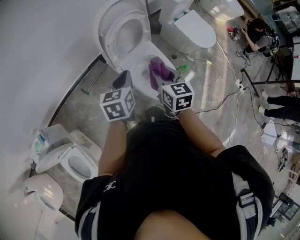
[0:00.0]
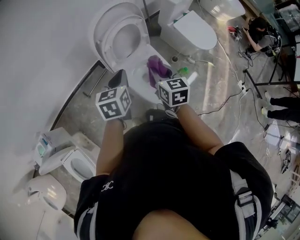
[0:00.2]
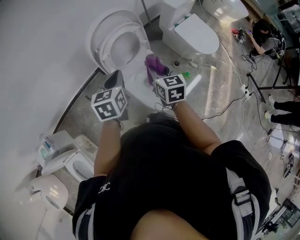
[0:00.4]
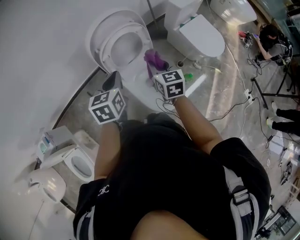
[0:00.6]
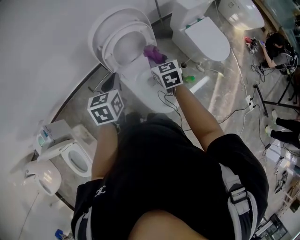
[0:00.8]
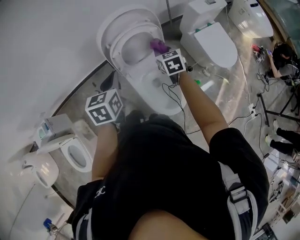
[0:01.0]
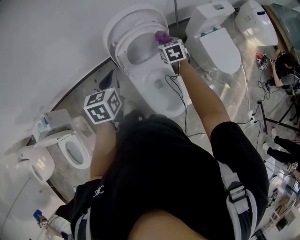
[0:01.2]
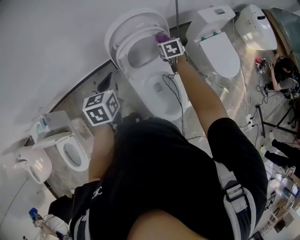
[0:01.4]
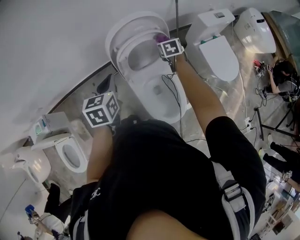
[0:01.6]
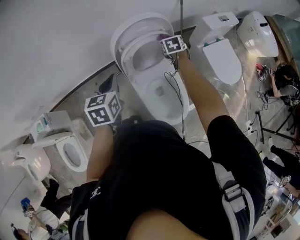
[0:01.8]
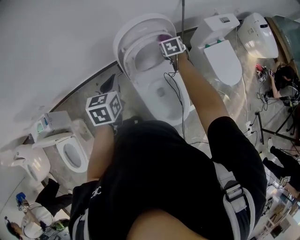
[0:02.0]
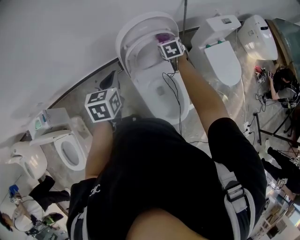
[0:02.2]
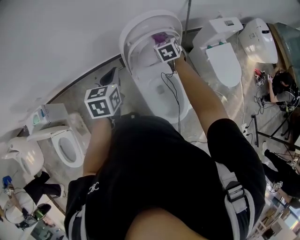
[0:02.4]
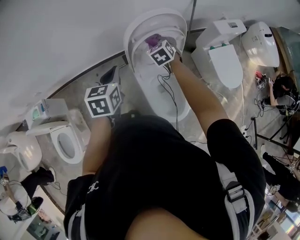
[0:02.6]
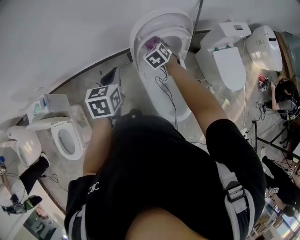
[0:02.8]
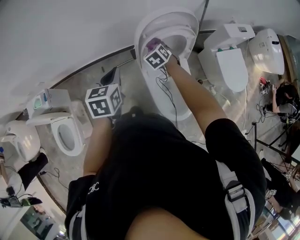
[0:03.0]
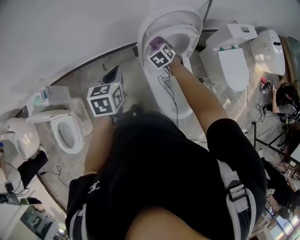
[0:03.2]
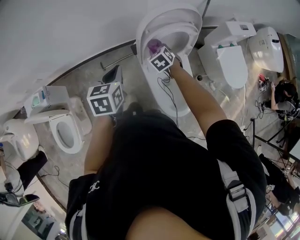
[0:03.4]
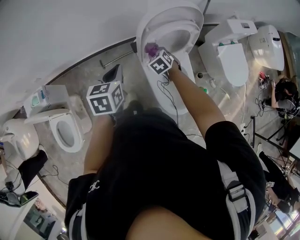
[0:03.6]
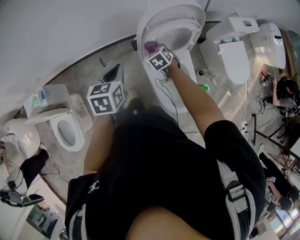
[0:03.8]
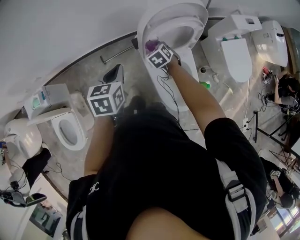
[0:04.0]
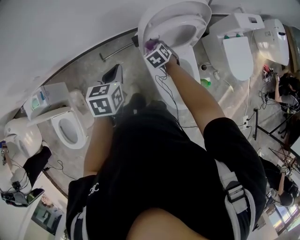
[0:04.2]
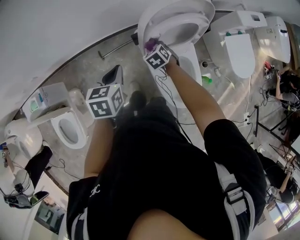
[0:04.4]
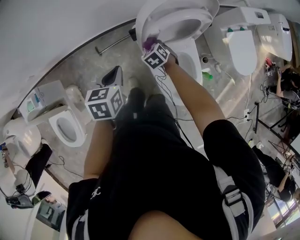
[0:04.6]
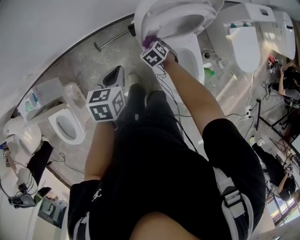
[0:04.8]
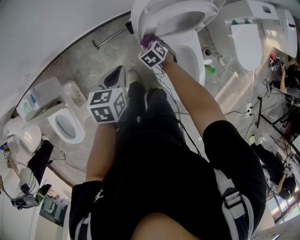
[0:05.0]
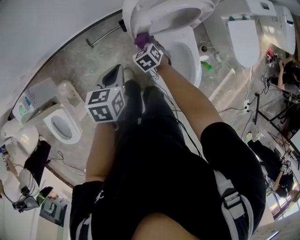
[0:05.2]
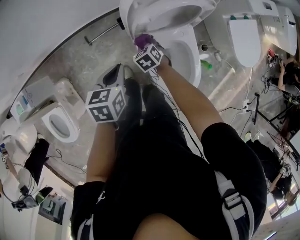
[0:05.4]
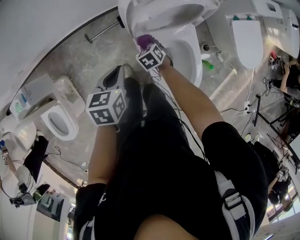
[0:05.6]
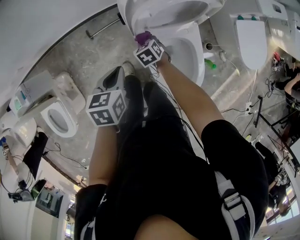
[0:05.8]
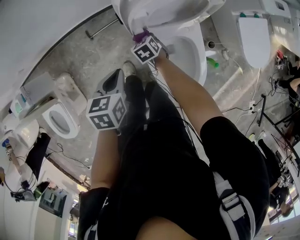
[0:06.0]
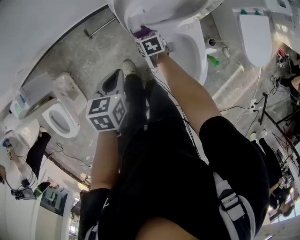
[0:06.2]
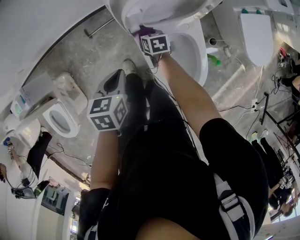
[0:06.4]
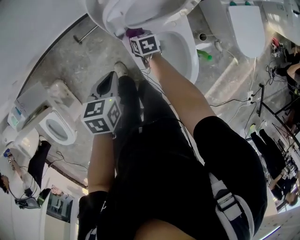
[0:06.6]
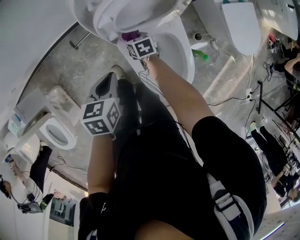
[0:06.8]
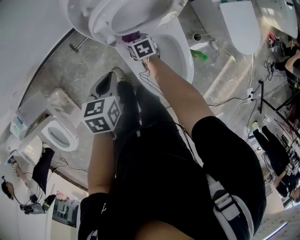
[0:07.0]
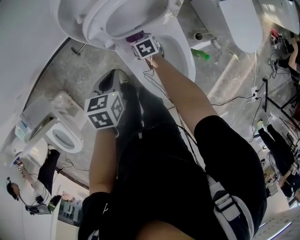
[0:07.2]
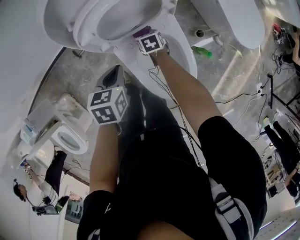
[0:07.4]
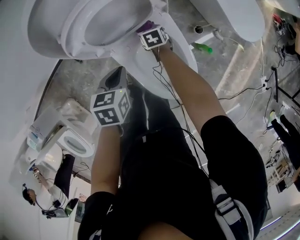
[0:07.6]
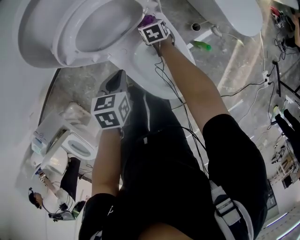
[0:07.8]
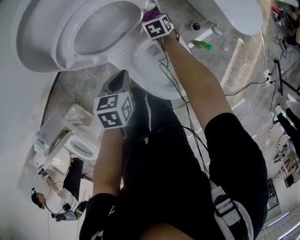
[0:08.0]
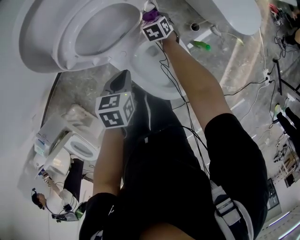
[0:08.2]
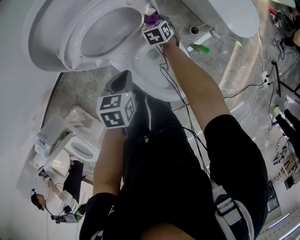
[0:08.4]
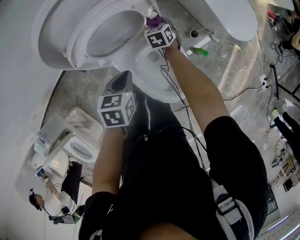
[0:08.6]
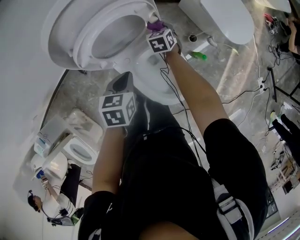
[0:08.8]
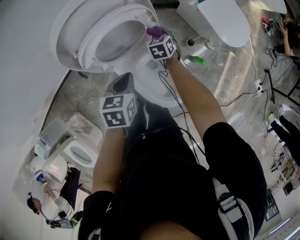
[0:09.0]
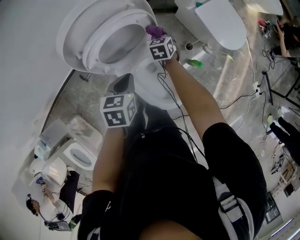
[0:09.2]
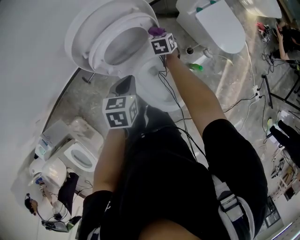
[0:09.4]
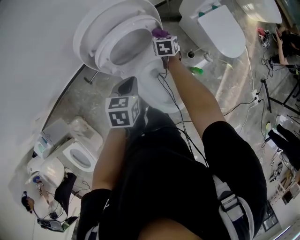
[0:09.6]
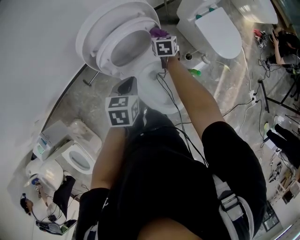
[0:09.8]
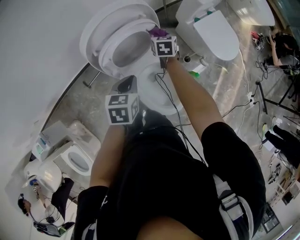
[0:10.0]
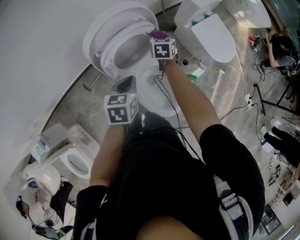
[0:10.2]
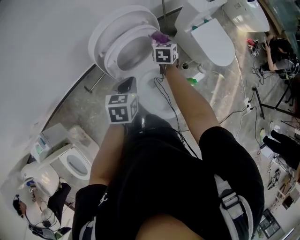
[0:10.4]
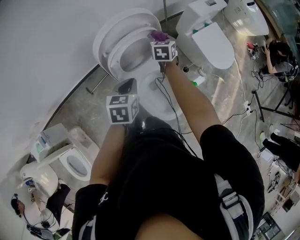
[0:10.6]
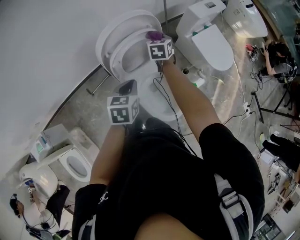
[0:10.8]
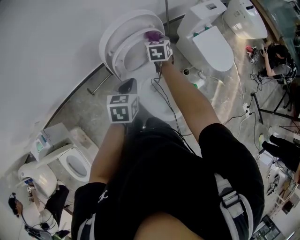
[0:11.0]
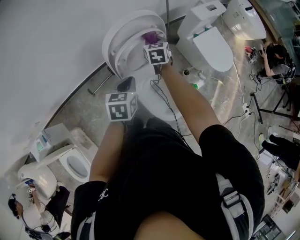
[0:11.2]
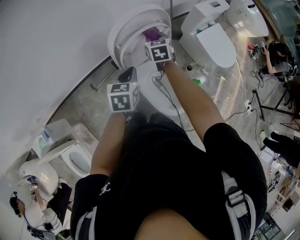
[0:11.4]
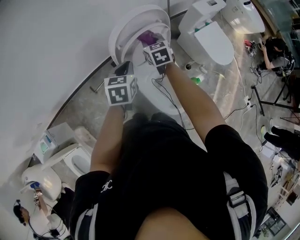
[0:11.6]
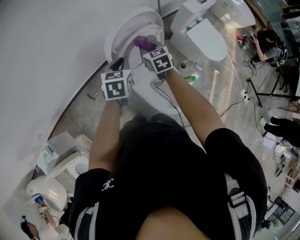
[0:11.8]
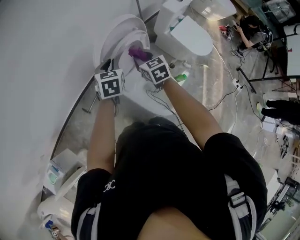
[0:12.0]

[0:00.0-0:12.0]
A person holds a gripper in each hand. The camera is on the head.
0:00.0 to 0:01.6: The right gripper moves forward, roughly 35 cm, and swivels some 30 degrees. Meanwhile the left gripper is displaced forward by about 10 cm.
0:01.6 to 0:03.0: The left gripper heads to the left, covering some 10 cm. Meanwhile the right gripper shifts some 25 cm to the left, and swivels approximately 30 degrees.
0:03.0 to 0:04.4: The right gripper goes about 10 cm downward, while the left gripper travels downward by about 10 cm.
0:04.4 to 0:06.0: The right gripper travels downward by about 15 cm. The left gripper travels downward and to the right by approximately 15 cm.
0:06.0 to 0:07.6: The right gripper goes roughly 25 cm to the right, and changes its angle by about 30 degrees. Meanwhile the left gripper goes approximately 20 cm to the right and downward.
0:07.6 to 0:09.0: The left gripper shifts approximately 10 cm upward. The right gripper heads upward, to the right and forward, covering approximately 15 cm, and swivels approximately 20 degrees.
0:09.0 to 0:10.4: The left gripper goes some 10 cm upward; the right gripper heads upward, covering some 20 cm.
0:10.4 to 0:12.0: The left gripper is displaced to the left and forward by roughly 15 cm. Meanwhile the right gripper is displaced to the left, backward and upward by approximately 20 cm.

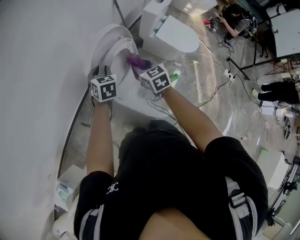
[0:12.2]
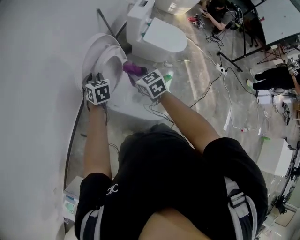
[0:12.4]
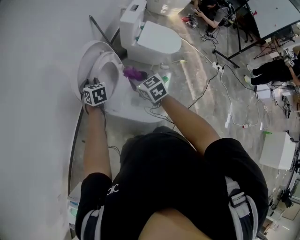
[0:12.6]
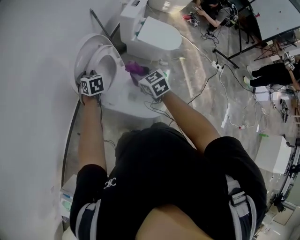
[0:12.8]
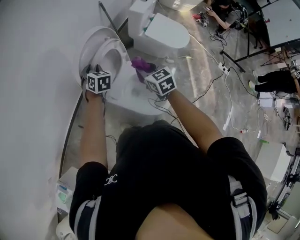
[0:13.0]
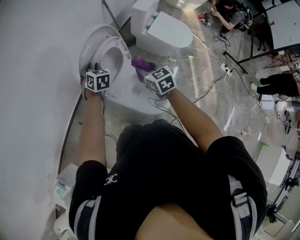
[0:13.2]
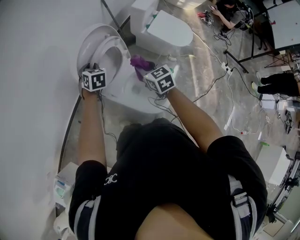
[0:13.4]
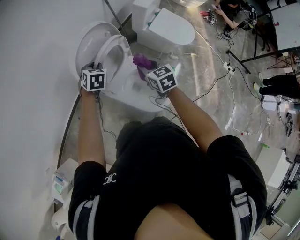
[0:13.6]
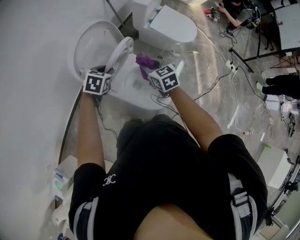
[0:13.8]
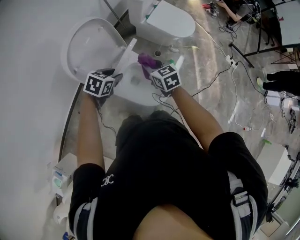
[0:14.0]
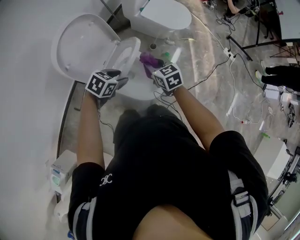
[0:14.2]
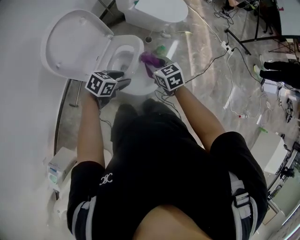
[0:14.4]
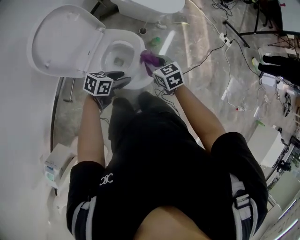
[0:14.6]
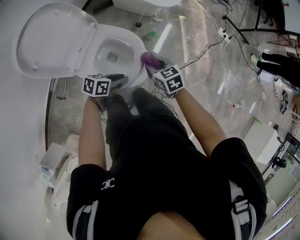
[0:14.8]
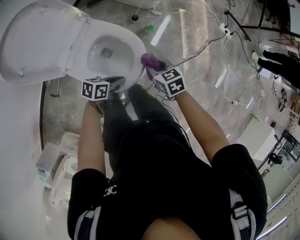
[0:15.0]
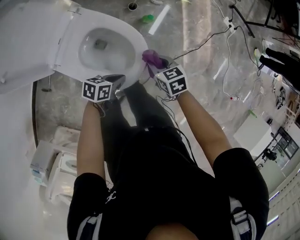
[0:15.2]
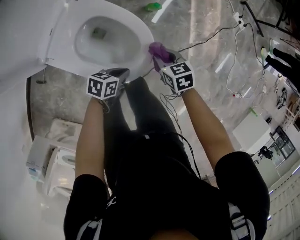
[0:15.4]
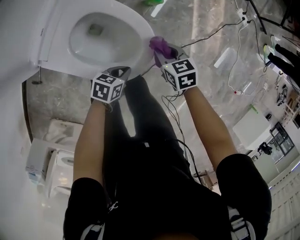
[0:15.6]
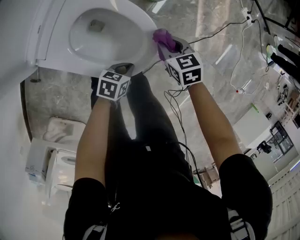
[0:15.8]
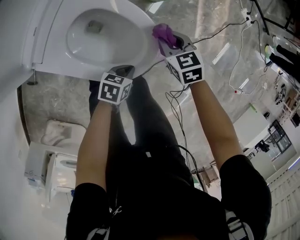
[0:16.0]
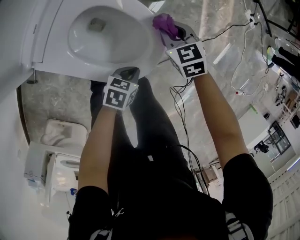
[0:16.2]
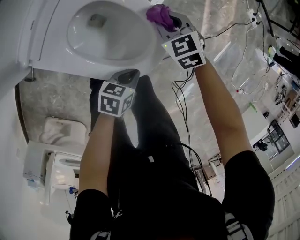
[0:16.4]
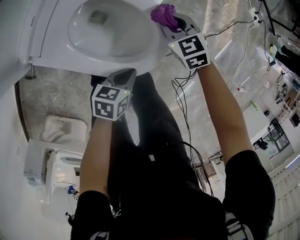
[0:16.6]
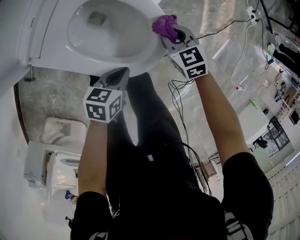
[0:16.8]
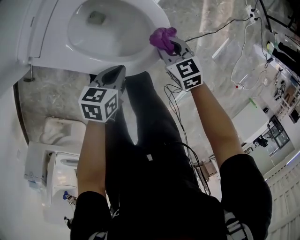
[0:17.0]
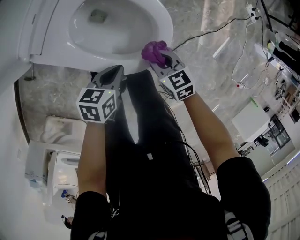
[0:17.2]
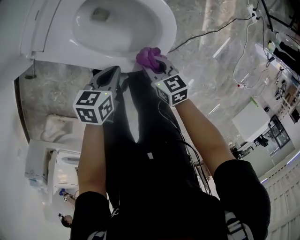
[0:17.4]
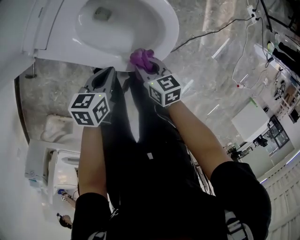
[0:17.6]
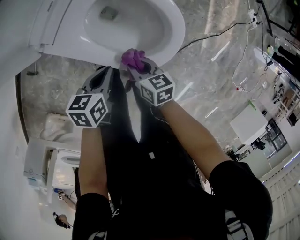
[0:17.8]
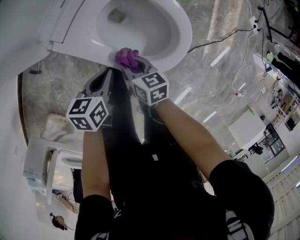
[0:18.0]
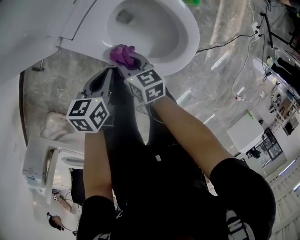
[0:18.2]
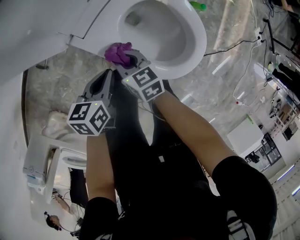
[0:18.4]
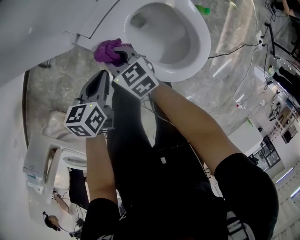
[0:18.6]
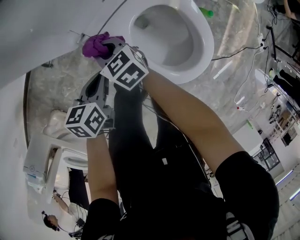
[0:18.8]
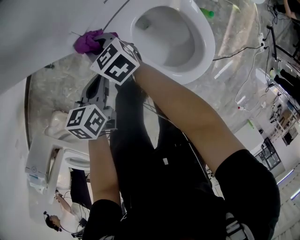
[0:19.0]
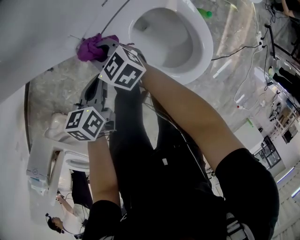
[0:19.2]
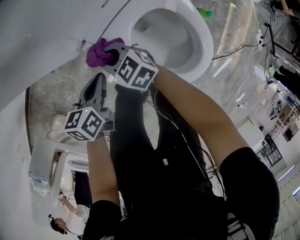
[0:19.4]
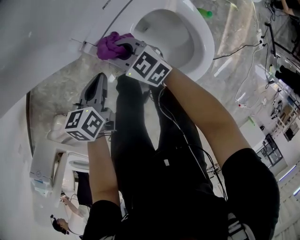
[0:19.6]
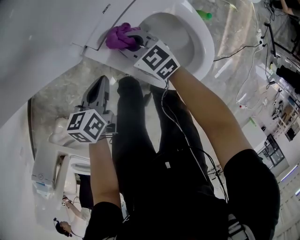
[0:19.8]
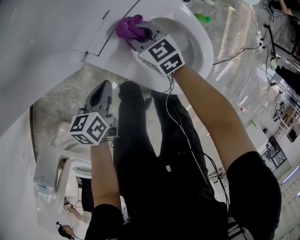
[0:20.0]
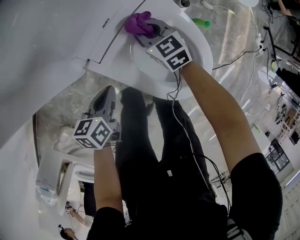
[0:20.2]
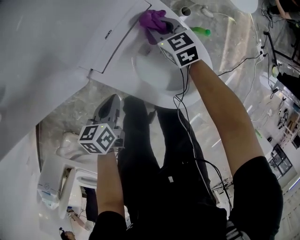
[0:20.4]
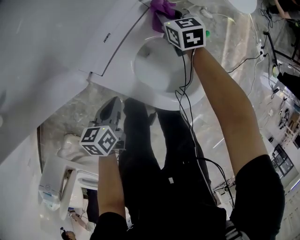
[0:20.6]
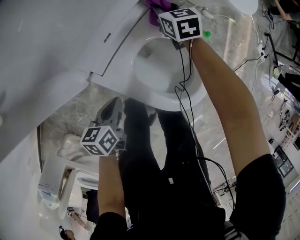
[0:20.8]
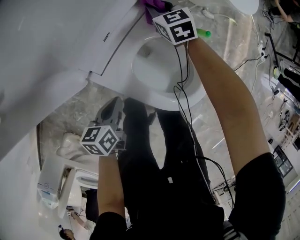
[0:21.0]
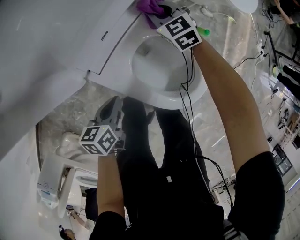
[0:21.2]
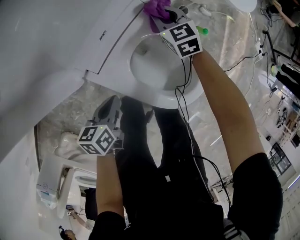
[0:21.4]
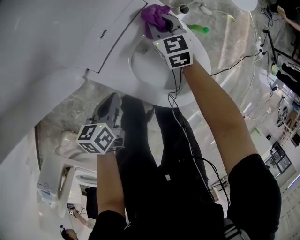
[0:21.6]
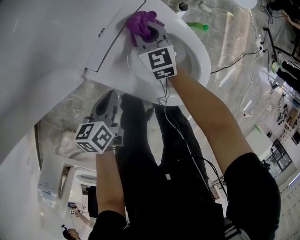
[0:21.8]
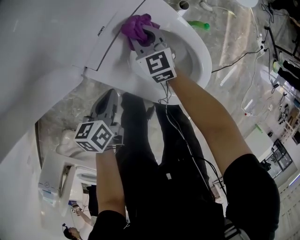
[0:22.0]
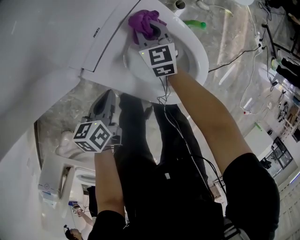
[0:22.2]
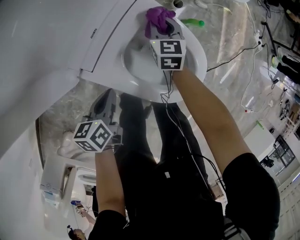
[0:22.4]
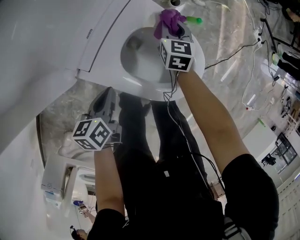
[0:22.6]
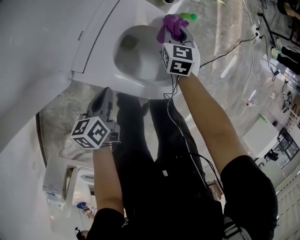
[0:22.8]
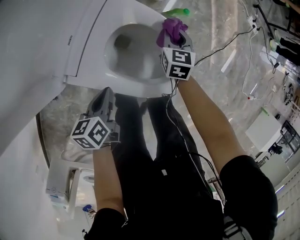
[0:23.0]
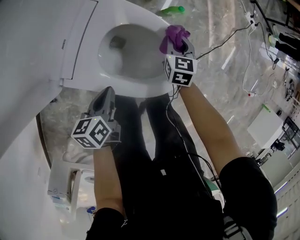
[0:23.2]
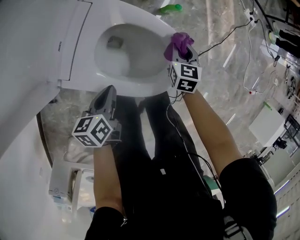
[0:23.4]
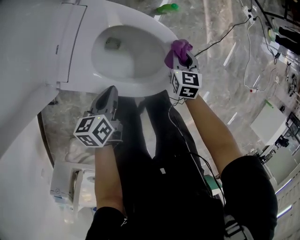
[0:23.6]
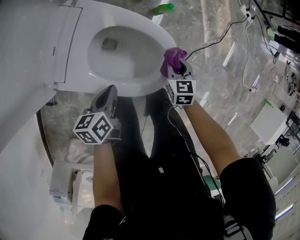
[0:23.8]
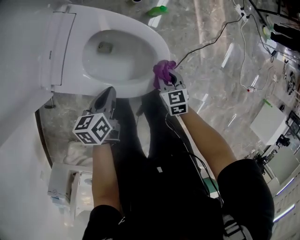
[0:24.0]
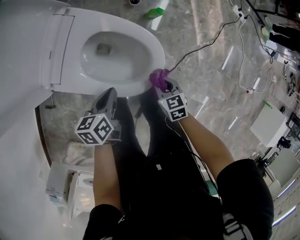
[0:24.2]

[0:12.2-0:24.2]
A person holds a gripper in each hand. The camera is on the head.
0:12.2 to 0:13.8: Both grippers move to the right and backward, about 15 cm. The left gripper changes its angle by roughly 30 degrees.
0:13.8 to 0:15.2: The left gripper moves approximately 40 cm, changes its angle by roughly 50 degrees, and closes its fingers; the right gripper goes roughly 30 cm downward, and rotates roughly 30 degrees.
0:15.2 to 0:16.6: Both grippers move downward, about 15 cm. The right gripper changes its angle by roughly 20 degrees.
0:16.6 to 0:18.2: The right gripper moves to the left and backward, roughly 30 cm, and rotates about 30 degrees; the left gripper shifts roughly 20 cm to the left, and turns by roughly 20 degrees.
0:18.2 to 0:19.8: The right gripper is displaced forward by about 15 cm, and swivels approximately 40 degrees; the left gripper goes some 10 cm to the left and forward.
0:19.8 to 0:21.2: The right gripper heads forward and to the right, covering approximately 25 cm, and rotates approximately 20 degrees.
0:21.2 to 0:22.6: The right gripper heads to the right, covering some 15 cm, and swivels roughly 50 degrees.
0:22.6 to 0:24.2: The right gripper goes approximately 30 cm to the right and backward, and swivels some 20 degrees. Meanwhile the left gripper moves to the right, about 15 cm.
